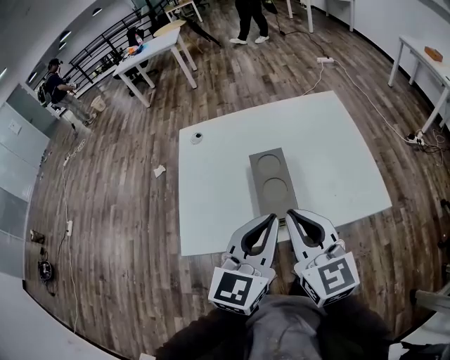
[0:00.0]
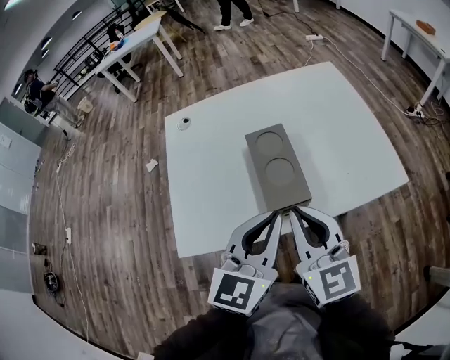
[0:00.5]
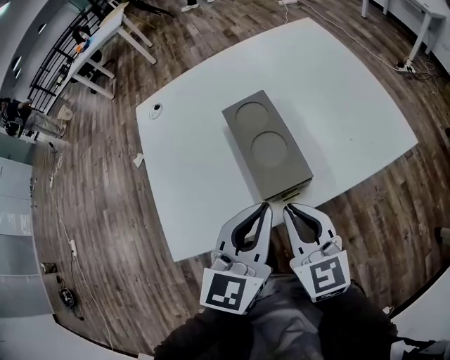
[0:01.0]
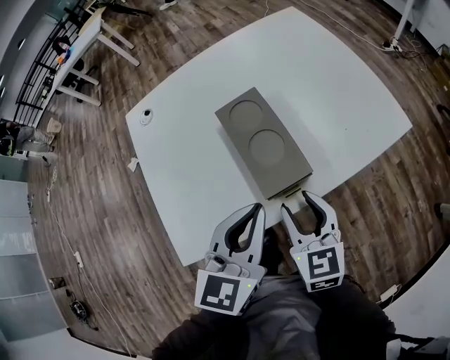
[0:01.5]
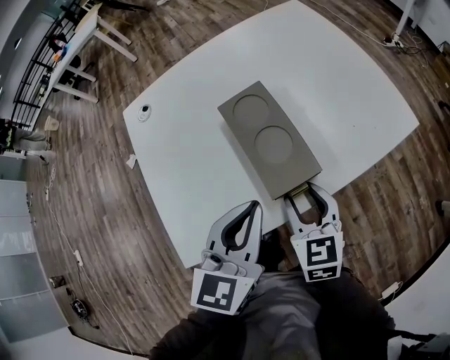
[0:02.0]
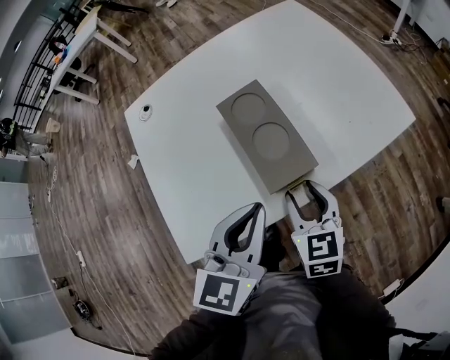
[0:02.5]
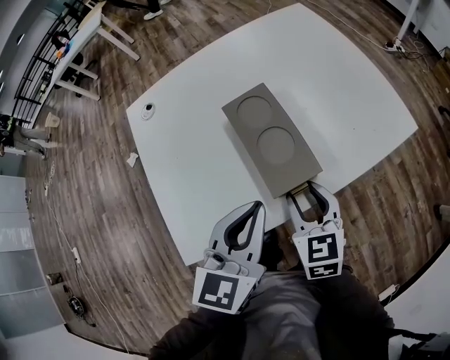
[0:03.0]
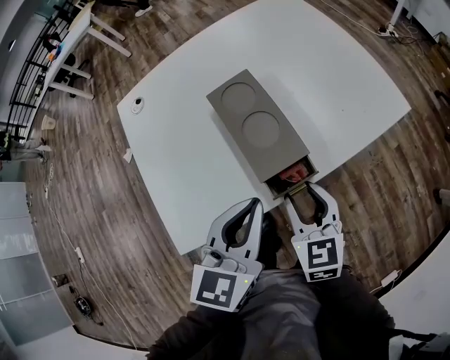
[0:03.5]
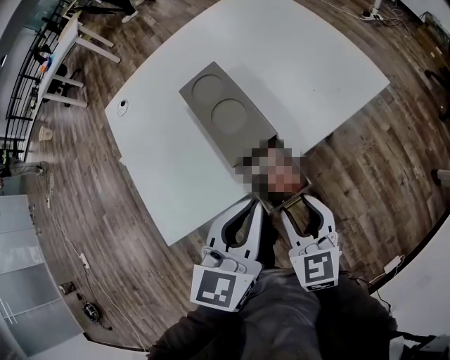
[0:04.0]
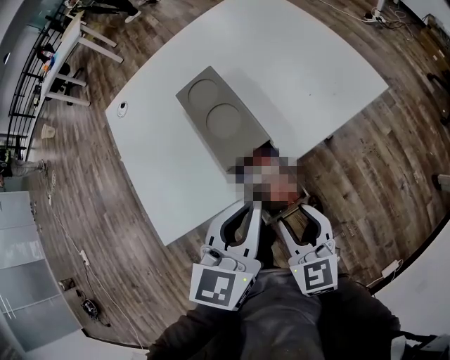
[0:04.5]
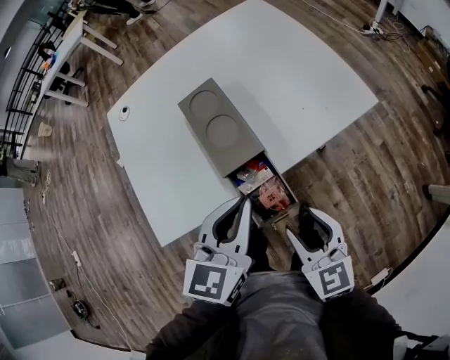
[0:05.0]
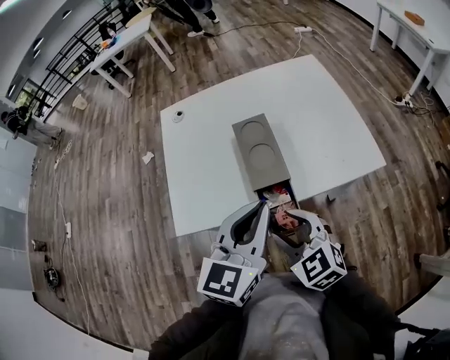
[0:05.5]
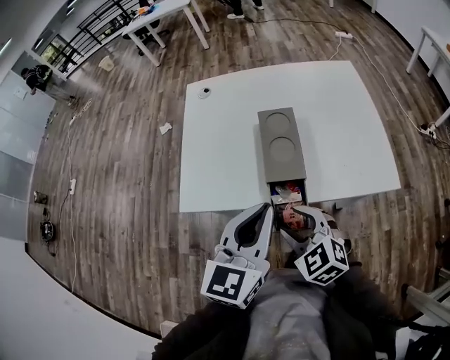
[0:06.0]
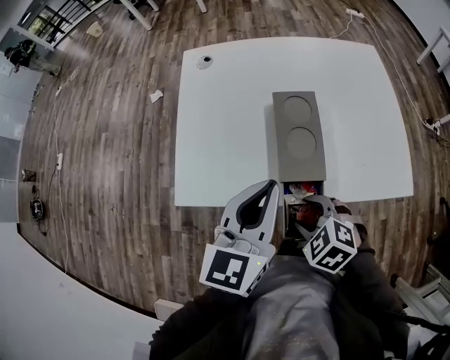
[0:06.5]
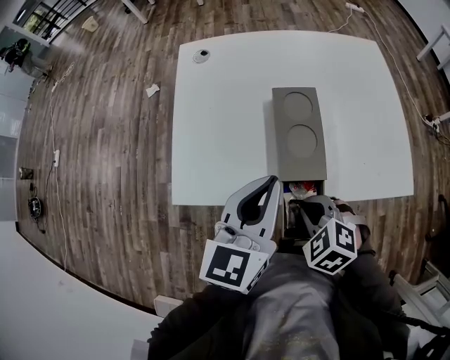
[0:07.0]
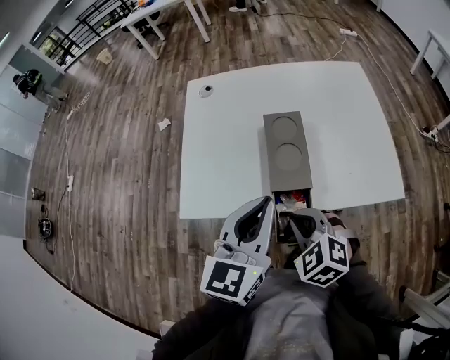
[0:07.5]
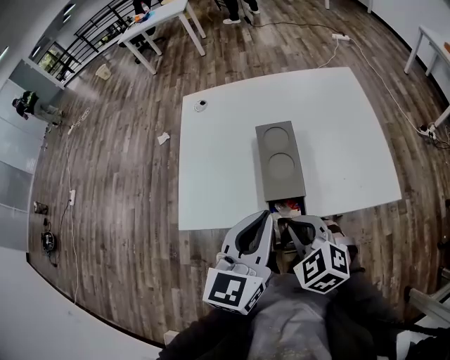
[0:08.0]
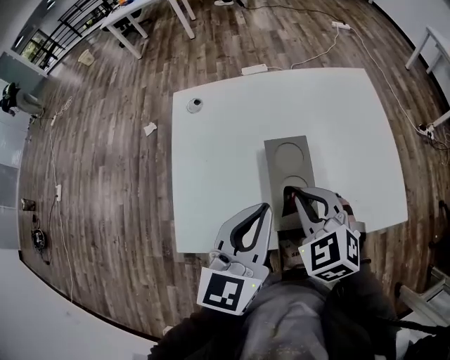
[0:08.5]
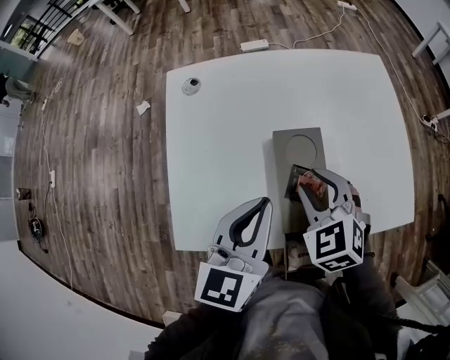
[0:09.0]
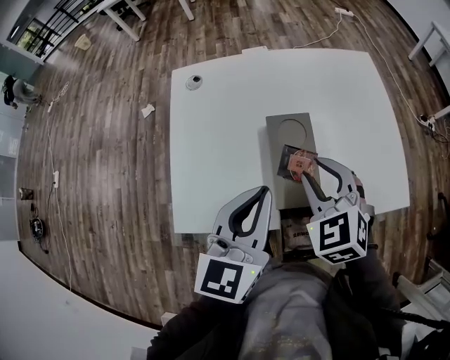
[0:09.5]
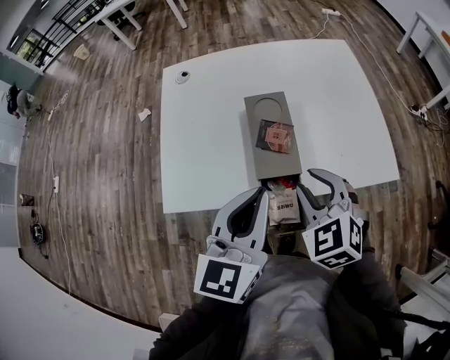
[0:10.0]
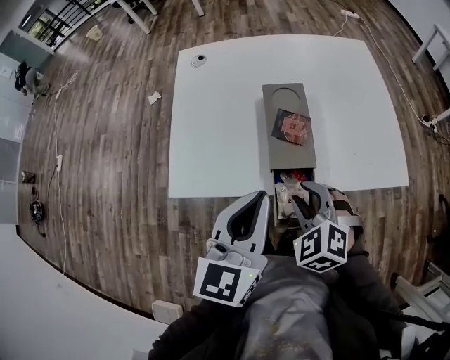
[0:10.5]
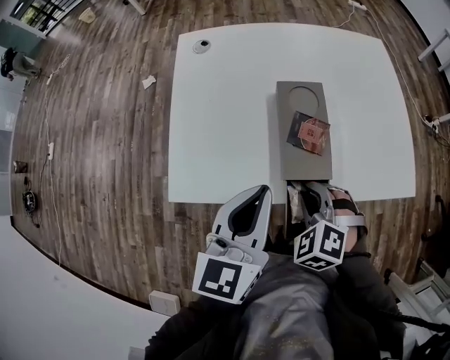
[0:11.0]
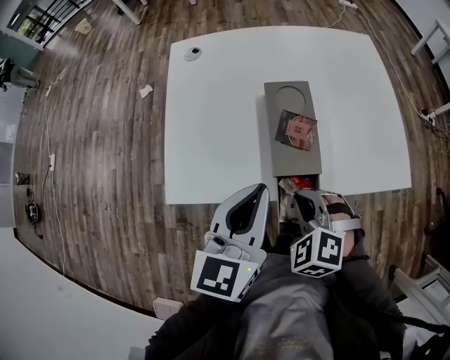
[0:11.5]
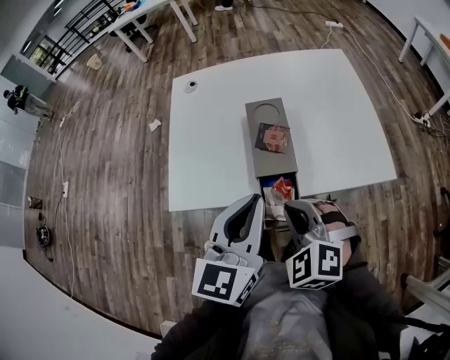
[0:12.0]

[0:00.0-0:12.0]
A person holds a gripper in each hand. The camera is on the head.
0:00.0 to 0:02.0: The right gripper shifts approximately 20 cm downward, turns by some 30 degrees, and opens its fingers, while the left gripper travels downward and to the left by about 15 cm.
0:02.0 to 0:04.0: The right gripper goes about 10 cm backward and to the right. The left gripper travels to the right and backward by approximately 10 cm.
0:04.0 to 0:06.0: The left gripper moves upward, some 10 cm, and rotates some 30 degrees. Meanwhile the right gripper shifts about 5 cm upward, and swivels approximately 60 degrees.
0:06.0 to 0:08.0: The right gripper closes up.
0:08.0 to 0:10.0: The right gripper reaches about 20 cm forward, then returns, and opens. Meanwhile the left gripper moves roughly 15 cm forward and comes back.
0:10.0 to 0:12.0: The right gripper moves backward, about 5 cm, moves about 10 cm downward and comes back, and closes its fingers.

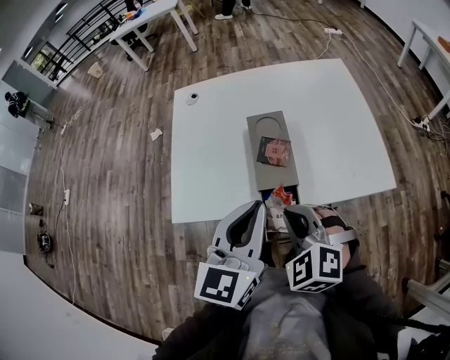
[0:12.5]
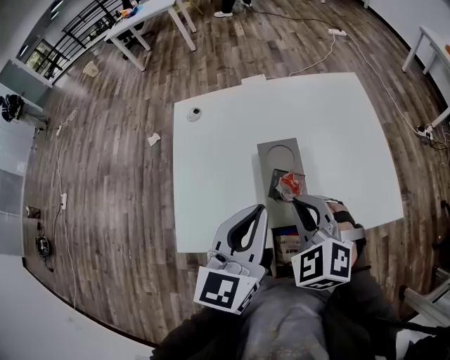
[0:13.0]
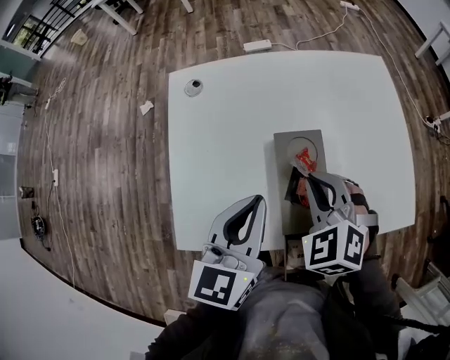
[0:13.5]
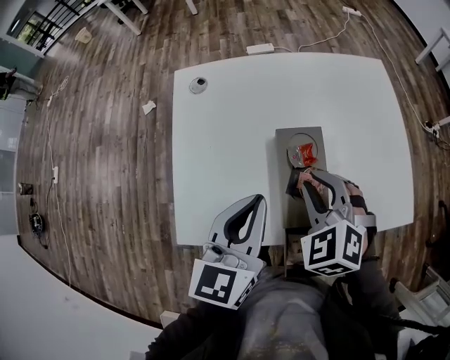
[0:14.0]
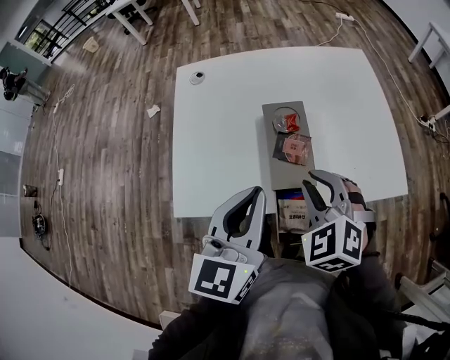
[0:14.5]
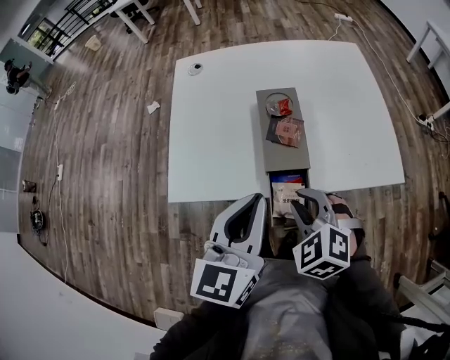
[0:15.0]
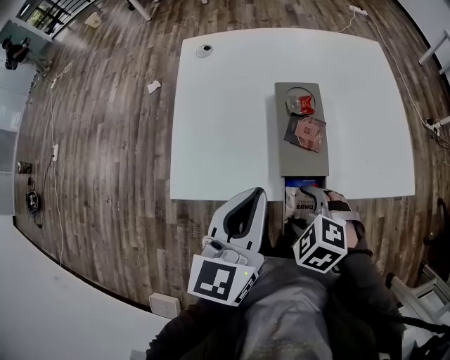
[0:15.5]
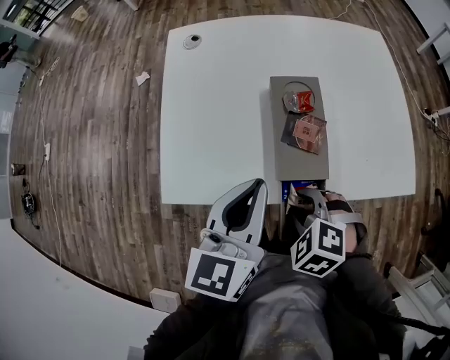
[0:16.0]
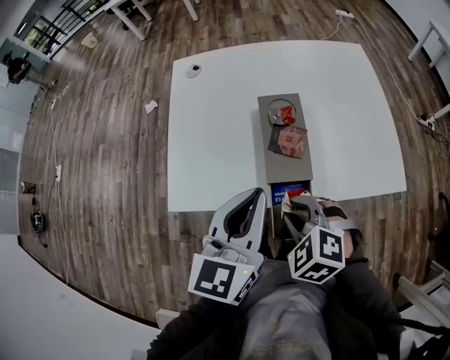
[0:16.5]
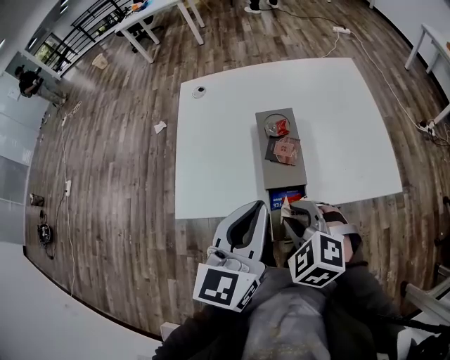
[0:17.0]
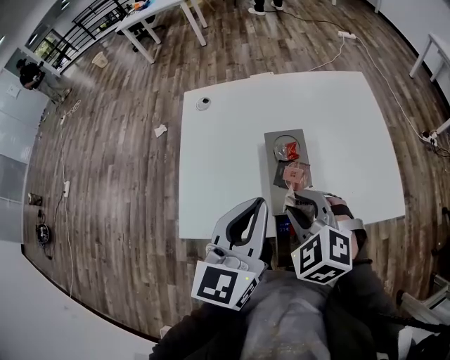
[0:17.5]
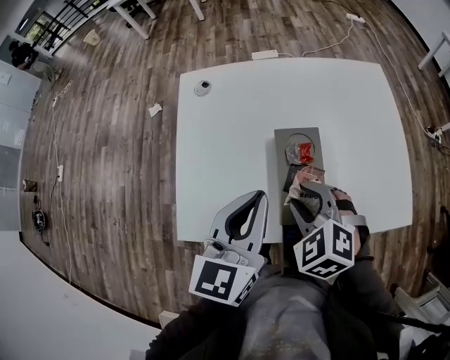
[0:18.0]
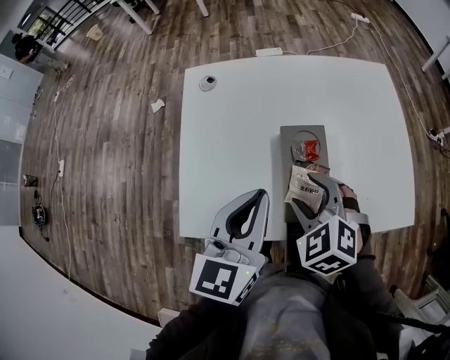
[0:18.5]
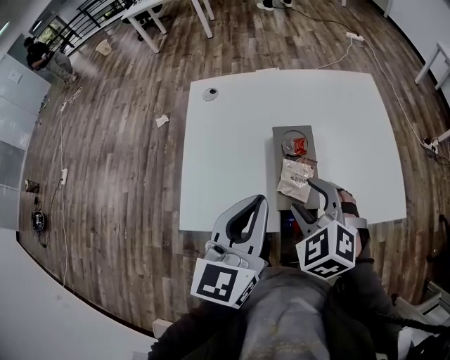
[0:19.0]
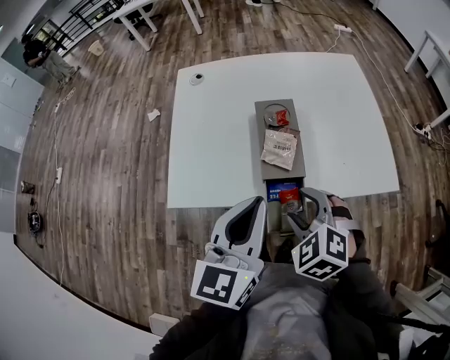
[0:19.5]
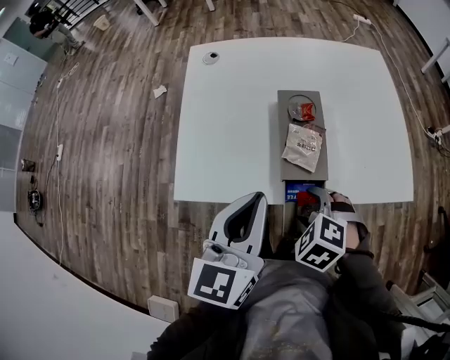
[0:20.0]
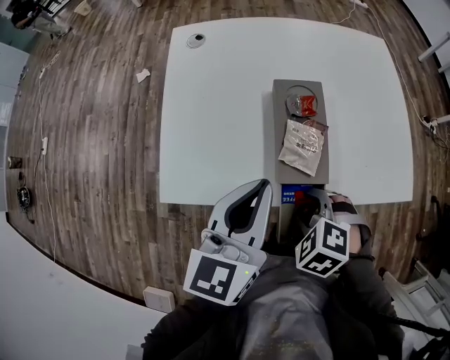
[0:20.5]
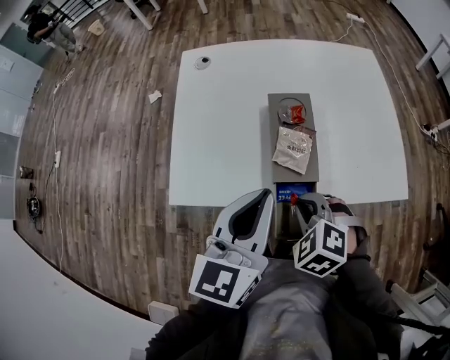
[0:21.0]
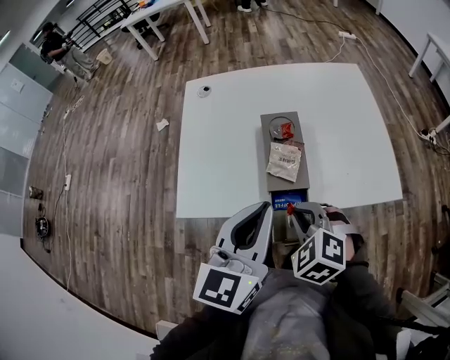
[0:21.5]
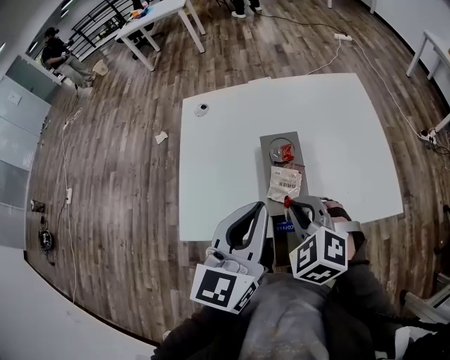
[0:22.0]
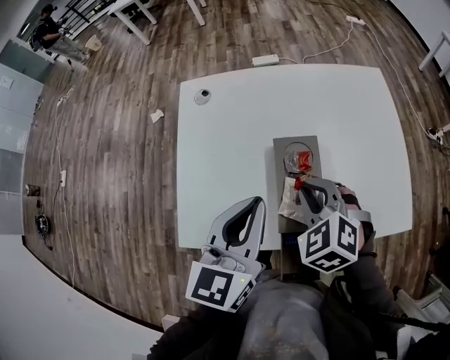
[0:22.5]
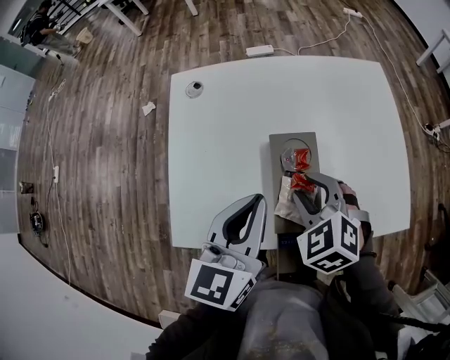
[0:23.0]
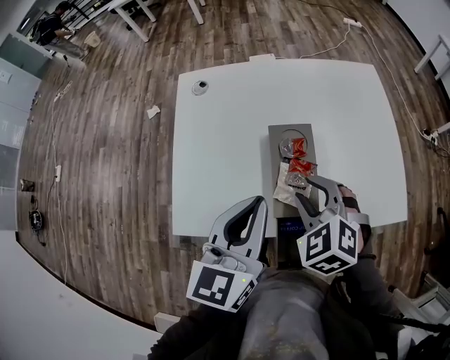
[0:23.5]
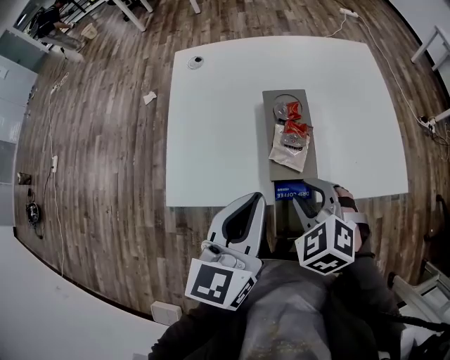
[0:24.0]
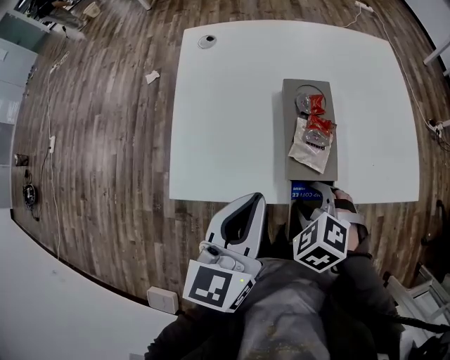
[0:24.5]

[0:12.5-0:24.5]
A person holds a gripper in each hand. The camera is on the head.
0:12.5 to 0:14.5: The right gripper travels forward by approximately 10 cm, while the left gripper reaches roughly 15 cm forward, then returns.
0:14.5 to 0:16.5: The right gripper shifts about 10 cm downward and backward, swivels about 20 degrees, and opens and closes again.
0:16.5 to 0:18.5: Both grippers move forward, about 10 cm. The right gripper opens its fingers.
0:18.5 to 0:20.5: The right gripper shifts roughly 15 cm backward and downward, and turns by roughly 20 degrees; the left gripper is displaced backward by approximately 5 cm.
0:20.5 to 0:22.5: The left gripper travels forward by roughly 5 cm, while the right gripper moves forward and upward, approximately 20 cm, rotates about 20 degrees, and closes.
0:22.5 to 0:24.5: The right gripper heads backward and downward, covering roughly 15 cm, and opens, while the left gripper shifts about 10 cm backward.

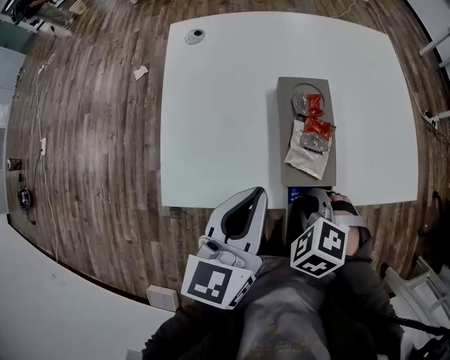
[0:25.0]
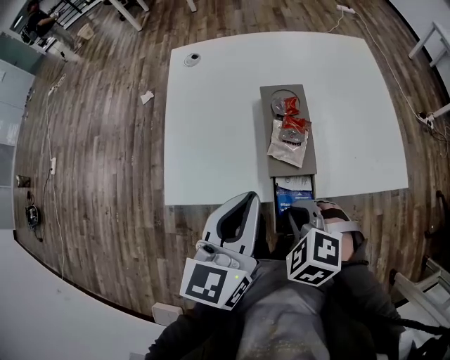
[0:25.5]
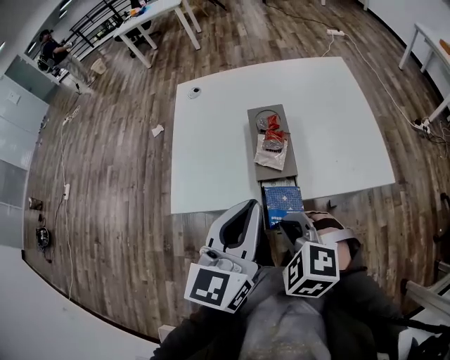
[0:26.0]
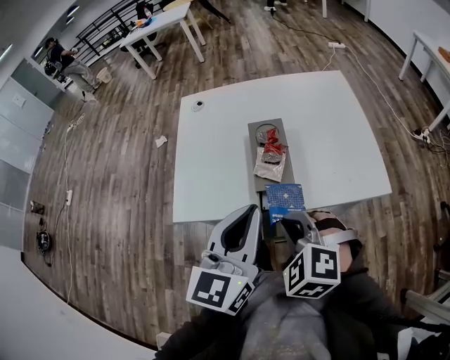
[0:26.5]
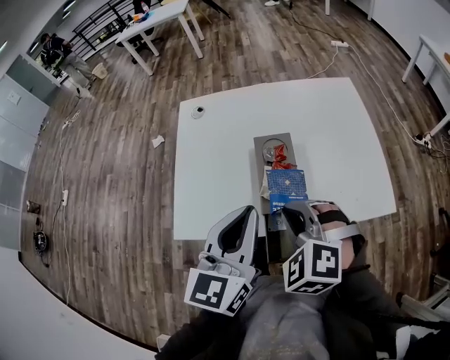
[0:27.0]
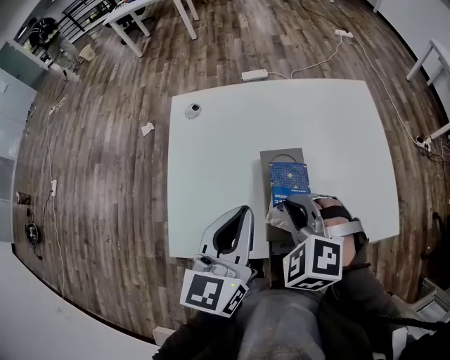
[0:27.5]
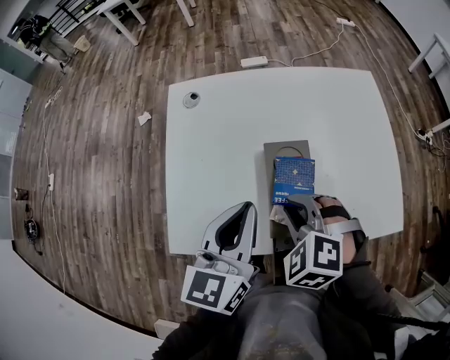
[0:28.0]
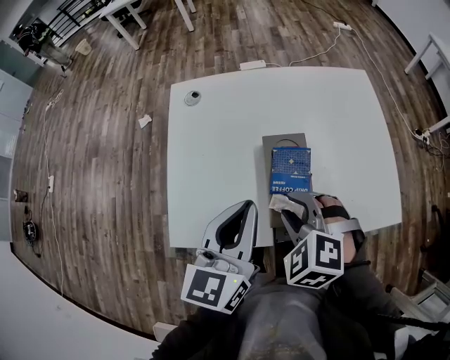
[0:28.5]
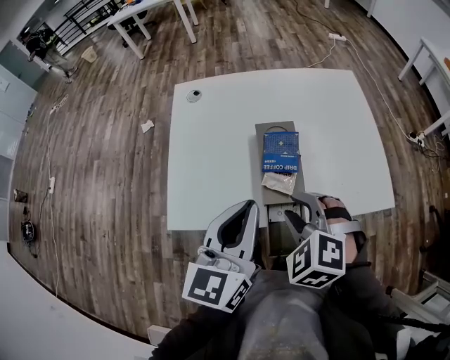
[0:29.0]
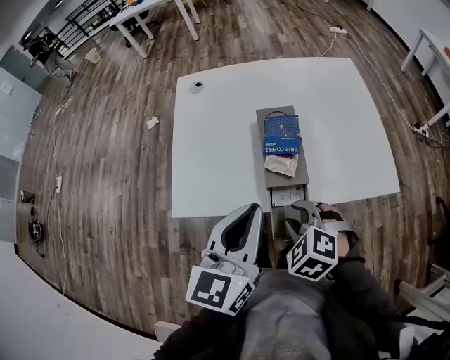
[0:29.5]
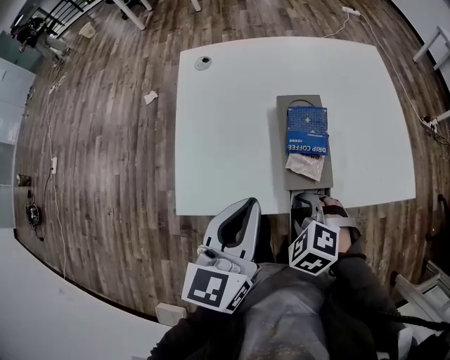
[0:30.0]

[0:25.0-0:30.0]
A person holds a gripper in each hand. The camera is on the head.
0:25.0 to 0:27.5: The left gripper travels forward and upward by some 10 cm, while the right gripper heads upward and forward, covering roughly 20 cm, and changes its angle by roughly 20 degrees.
0:27.5 to 0:30.0: The left gripper heads backward, covering about 10 cm; the right gripper is displaced downward and backward by approximately 20 cm, and opens up.
